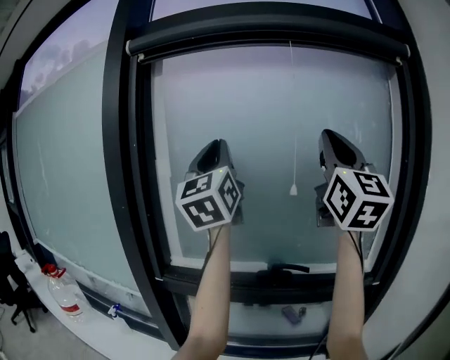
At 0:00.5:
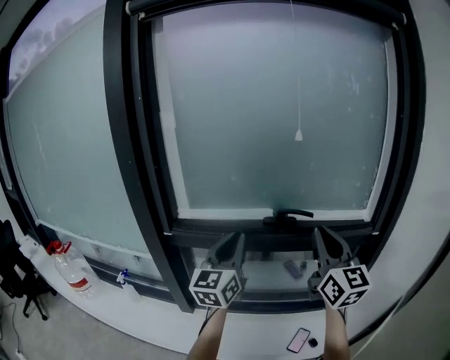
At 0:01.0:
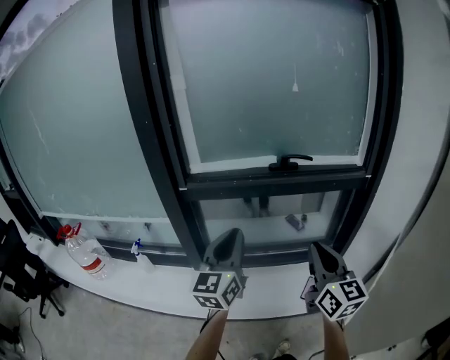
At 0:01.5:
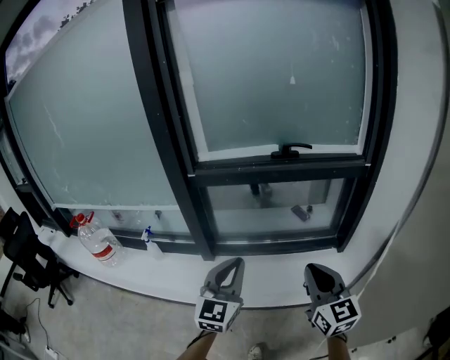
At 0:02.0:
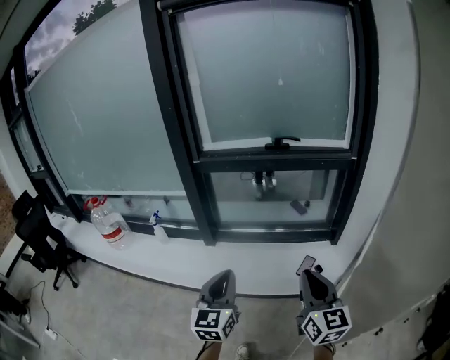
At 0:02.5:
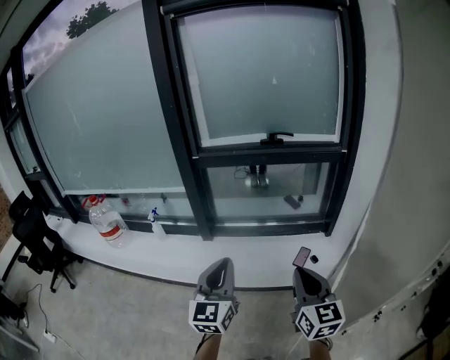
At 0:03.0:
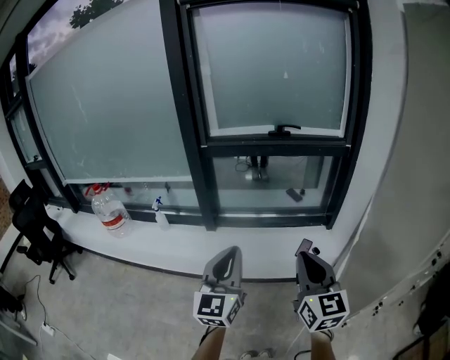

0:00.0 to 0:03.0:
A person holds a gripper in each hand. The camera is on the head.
0:00.0 to 0:01.5: The two grippers go roughly 60 cm downward and backward. The left gripper tips its fingers downward by approximately 40 degrees. Meanwhile the right gripper tips its fingers downward by roughly 40 degrees.
0:01.5 to 0:03.0: The two grippers go some 20 cm backward.

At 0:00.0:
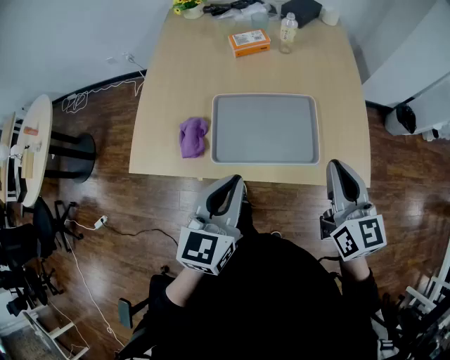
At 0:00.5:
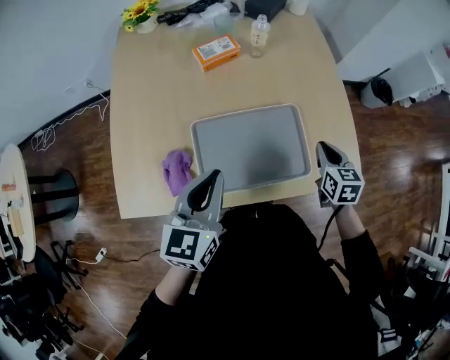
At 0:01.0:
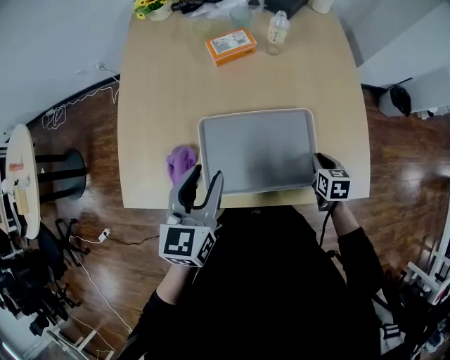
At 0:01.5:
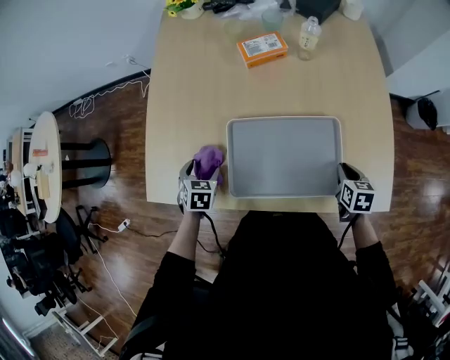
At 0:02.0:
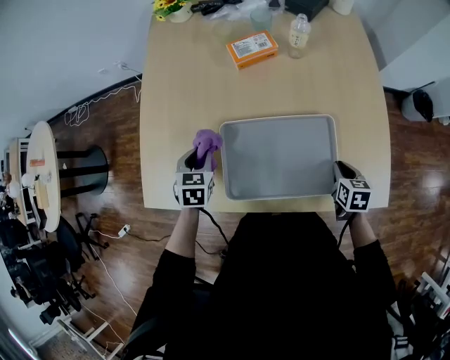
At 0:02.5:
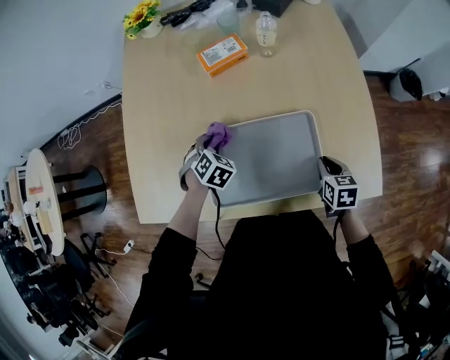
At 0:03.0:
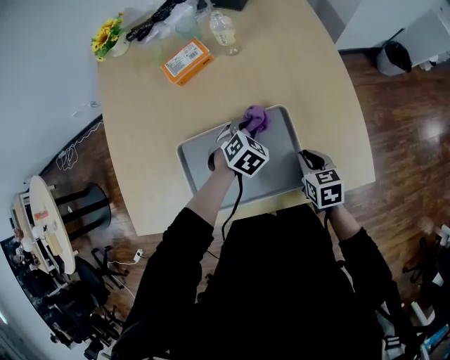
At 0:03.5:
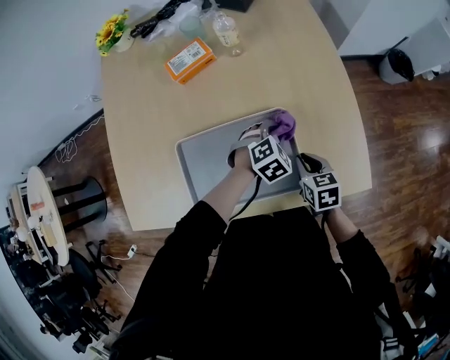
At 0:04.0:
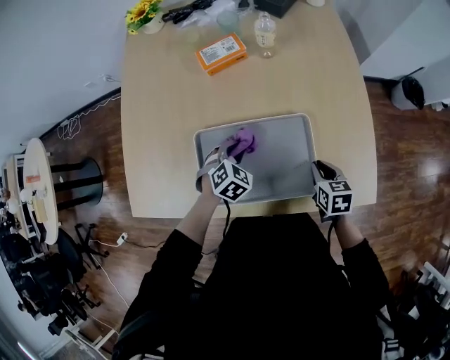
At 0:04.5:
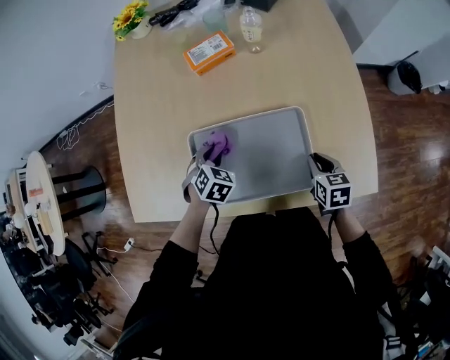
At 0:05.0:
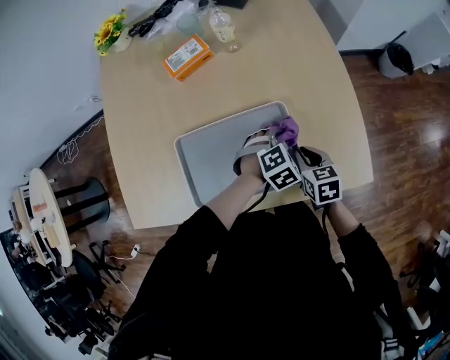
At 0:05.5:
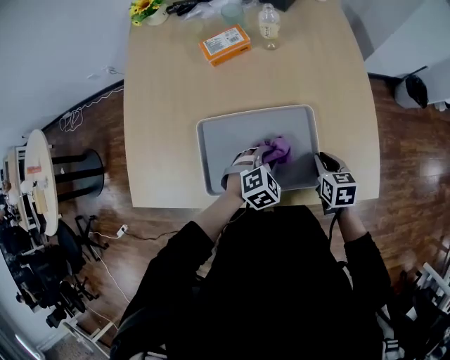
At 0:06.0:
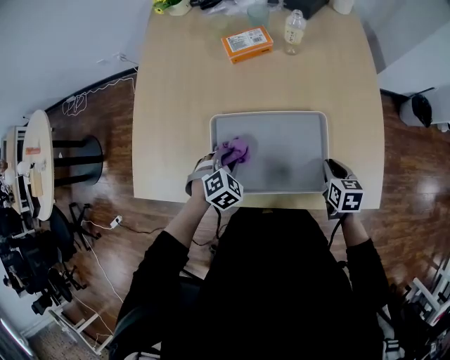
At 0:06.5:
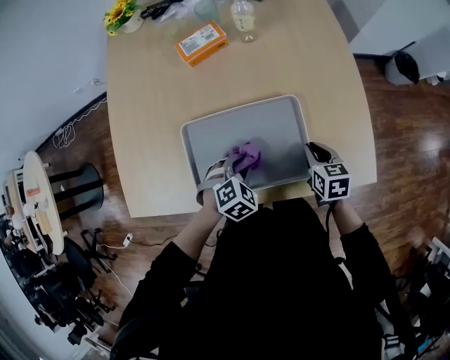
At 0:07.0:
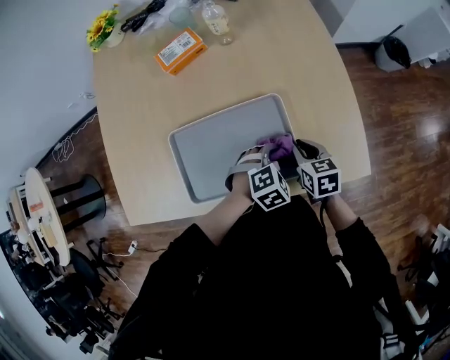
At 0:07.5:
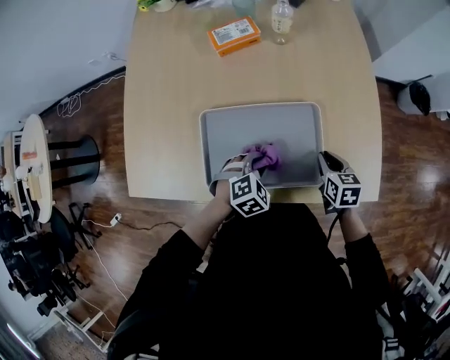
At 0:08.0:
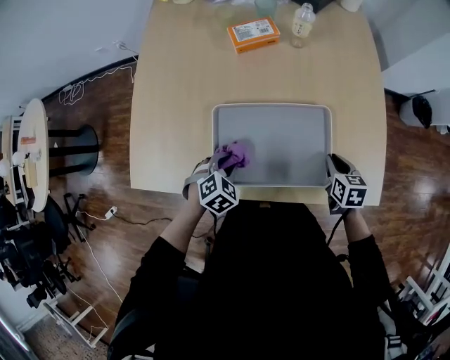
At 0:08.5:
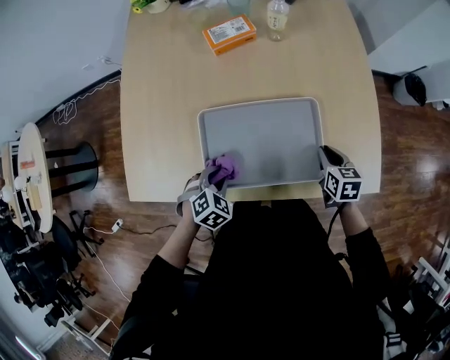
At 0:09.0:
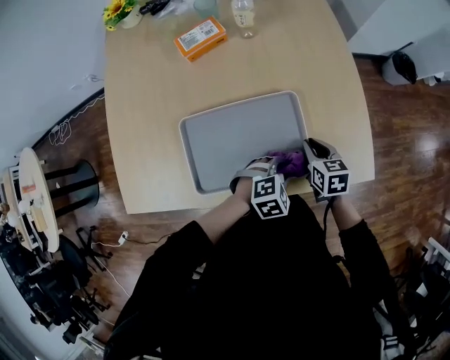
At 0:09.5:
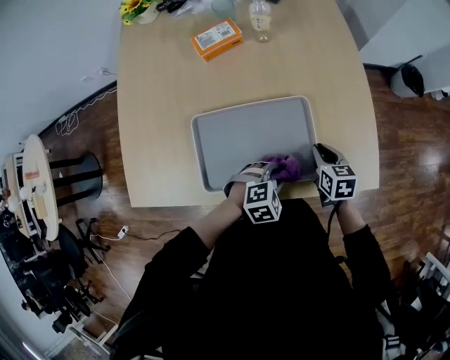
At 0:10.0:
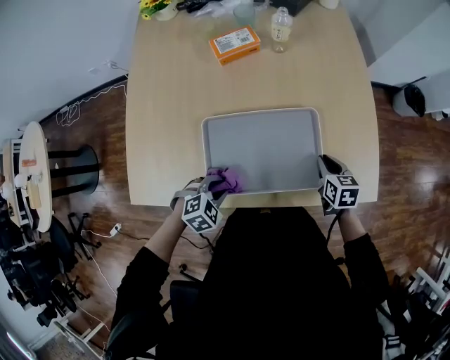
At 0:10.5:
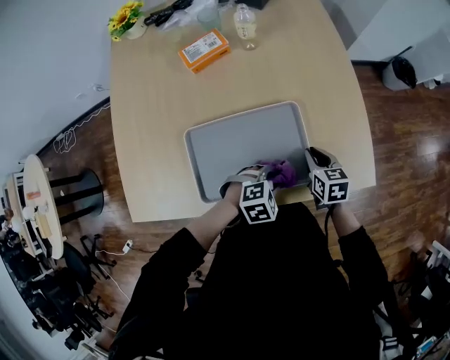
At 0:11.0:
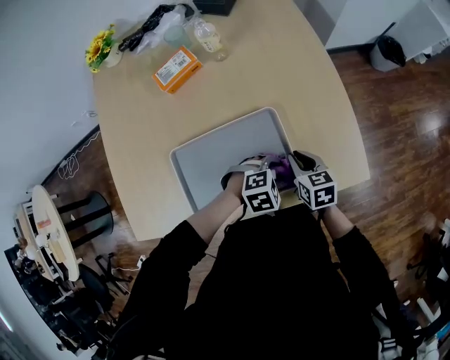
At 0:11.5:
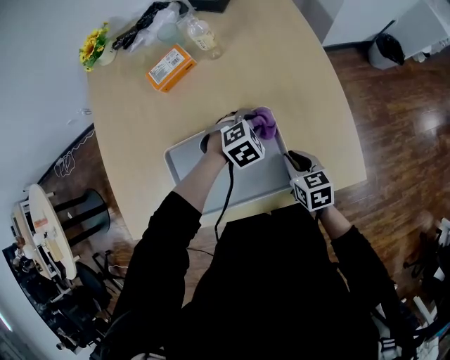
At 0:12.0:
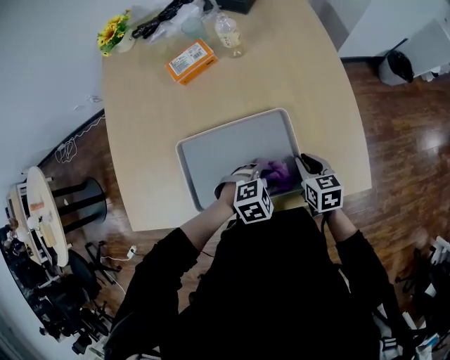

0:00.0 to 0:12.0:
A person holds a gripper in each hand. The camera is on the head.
0:00.0 to 0:02.0: The right gripper goes roughly 35 cm downward and forward, and points its fingers about 40 degrees further downward. Meanwhile the left gripper shifts roughly 35 cm forward, downward and to the left, tips its fingers downward by about 30 degrees, and opens and closes again.
0:02.0 to 0:04.0: The left gripper moves to the right, some 20 cm, and swivels roughly 40 degrees.
0:04.0 to 0:06.0: The left gripper goes left and right, some 25 cm each way, reversing 2 times.
0:06.0 to 0:08.0: The left gripper goes to the right and returns, some 25 cm each way.
0:08.0 to 0:10.0: The left gripper goes to the right and returns, approximately 25 cm each way.
0:10.0 to 0:12.0: The left gripper shifts some 25 cm to the right and forward.

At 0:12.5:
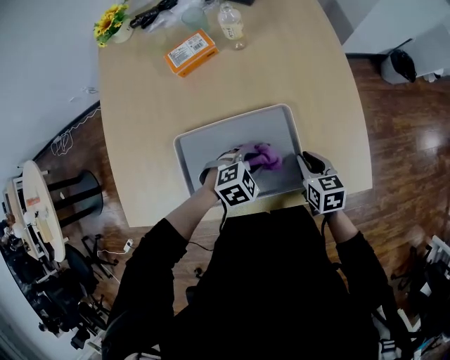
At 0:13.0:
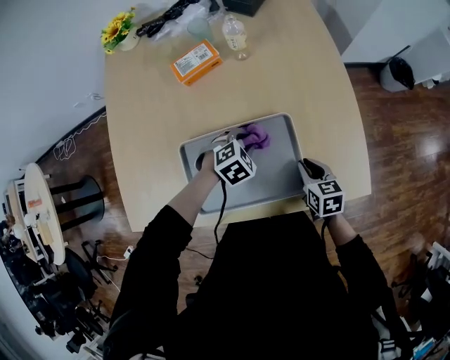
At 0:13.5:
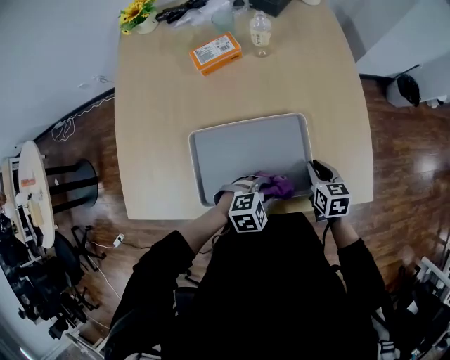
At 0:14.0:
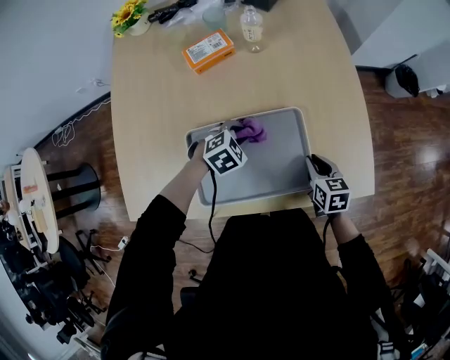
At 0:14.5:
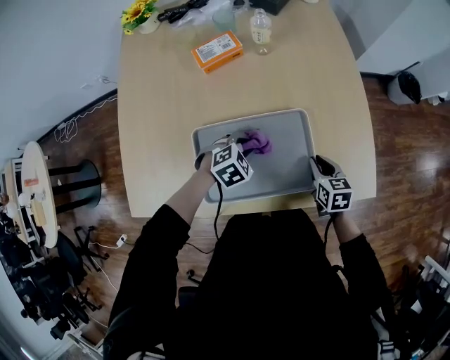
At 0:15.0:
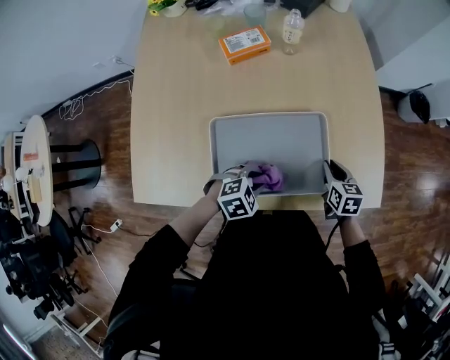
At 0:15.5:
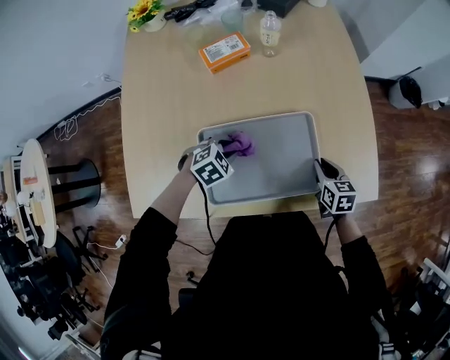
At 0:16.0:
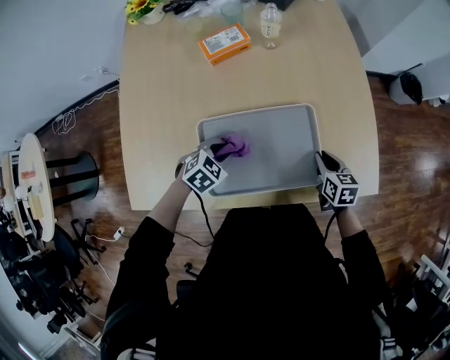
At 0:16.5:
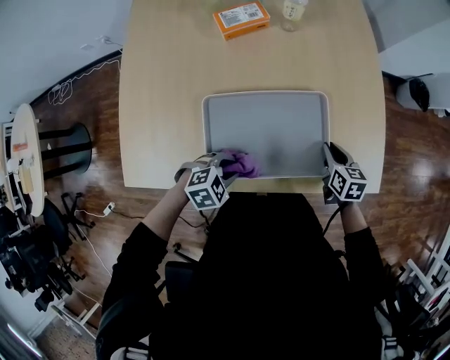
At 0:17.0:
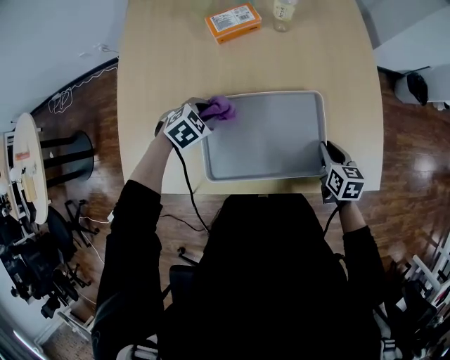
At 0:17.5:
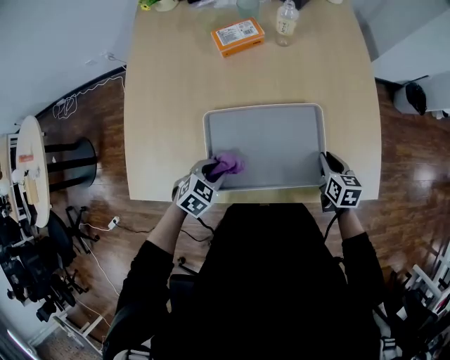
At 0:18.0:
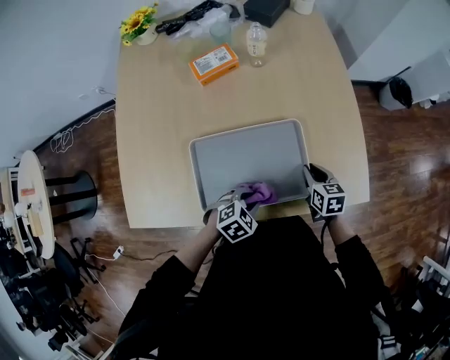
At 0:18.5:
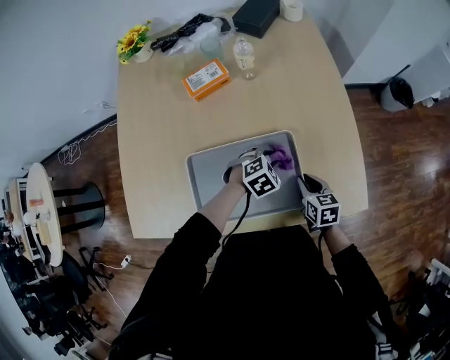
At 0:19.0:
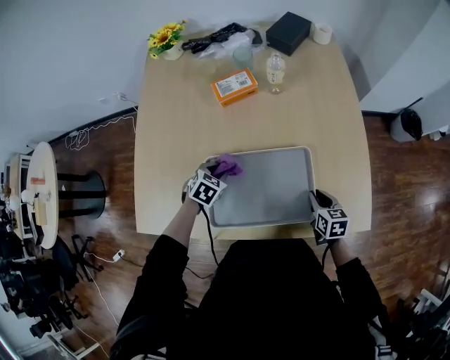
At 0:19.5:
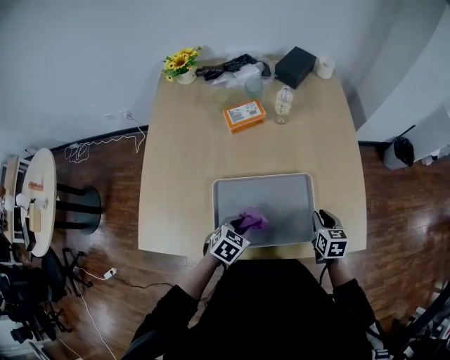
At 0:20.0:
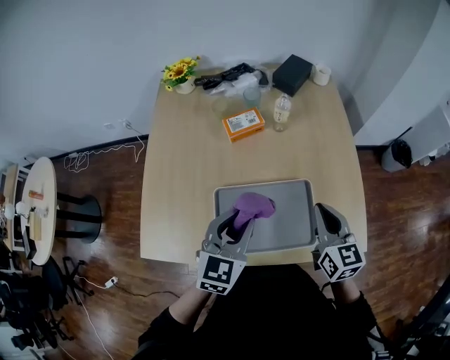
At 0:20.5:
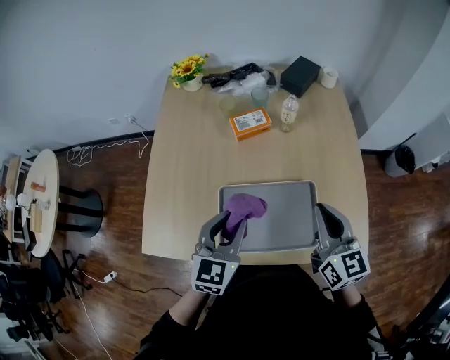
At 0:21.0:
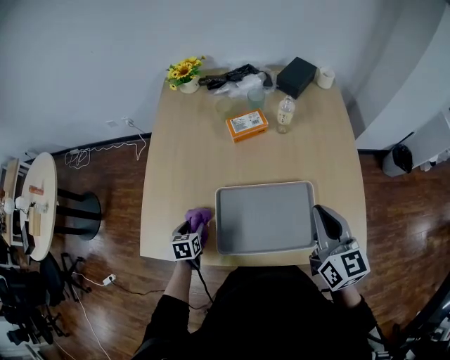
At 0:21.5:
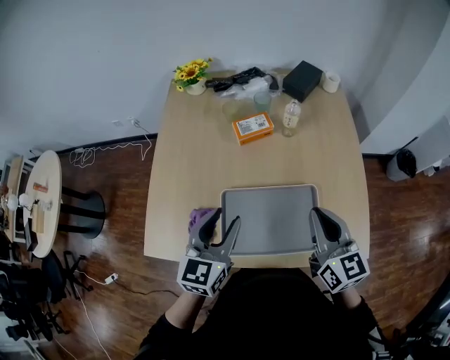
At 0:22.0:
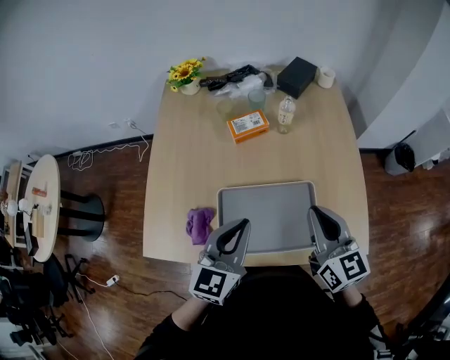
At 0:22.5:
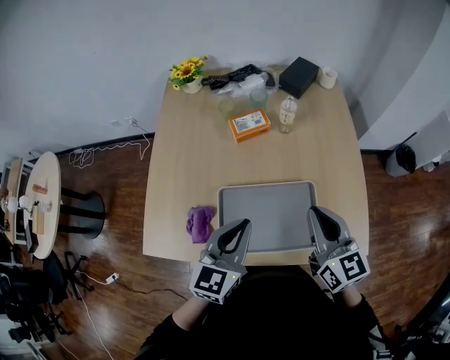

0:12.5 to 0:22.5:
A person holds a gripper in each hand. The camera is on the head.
0:12.5 to 0:14.5: The left gripper swings forward and backward, roughly 15 cm each way, with 2 reversals.
0:14.5 to 0:16.5: The left gripper goes forward and backward, approximately 15 cm each way, reversing 2 times.
0:16.5 to 0:18.5: The left gripper goes approximately 25 cm forward and to the right.
0:18.5 to 0:20.5: The right gripper travels upward by some 30 cm, and points its fingers approximately 30 degrees further upward, while the left gripper shifts approximately 35 cm upward and to the left, and angles its fingers upward, by roughly 40 degrees.
0:20.5 to 0:22.5: The left gripper reaches about 25 cm downward, then returns.

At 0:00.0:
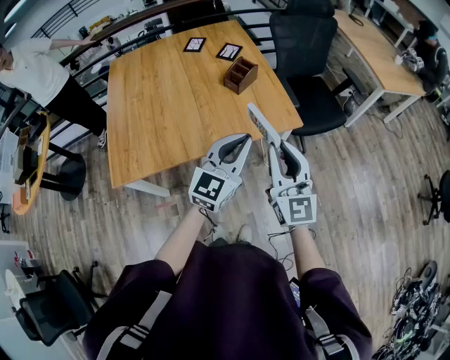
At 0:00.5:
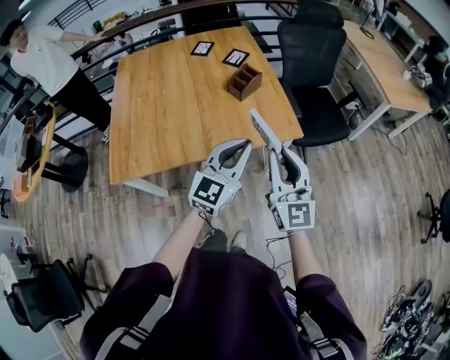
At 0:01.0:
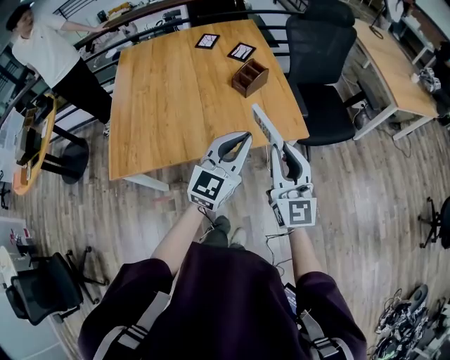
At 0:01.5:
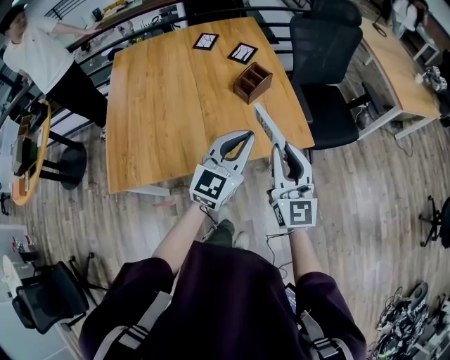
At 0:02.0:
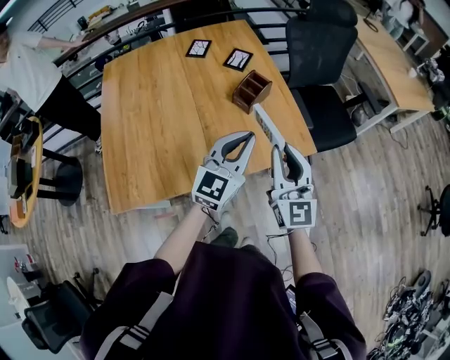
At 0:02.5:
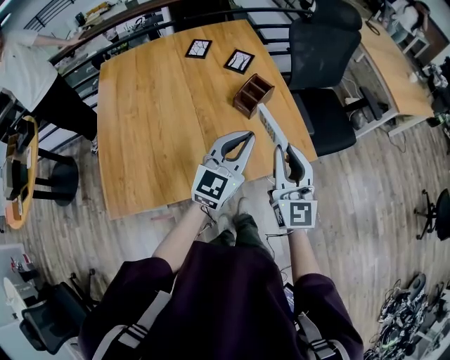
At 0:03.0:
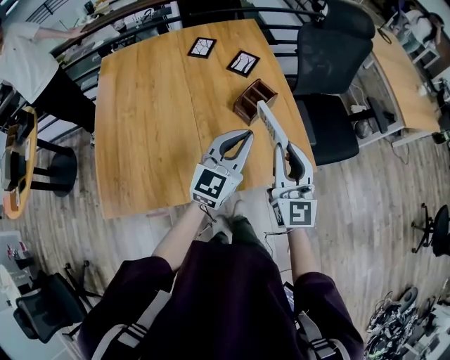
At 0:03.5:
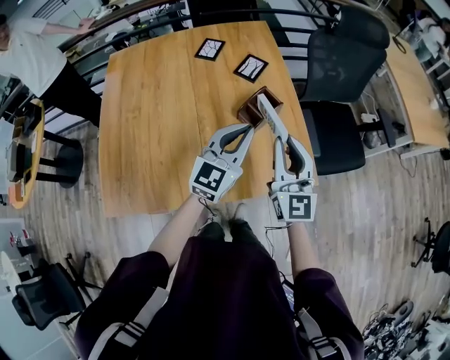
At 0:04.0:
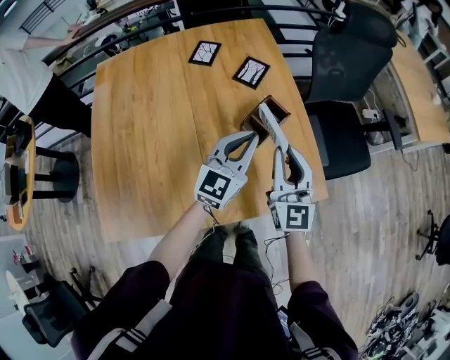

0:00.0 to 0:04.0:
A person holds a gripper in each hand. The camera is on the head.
0:00.0 to 0:02.0: Both grippers travel together forward, roughly 15 cm.
0:02.0 to 0:04.0: The grippers both shift forward by approximately 20 cm.
